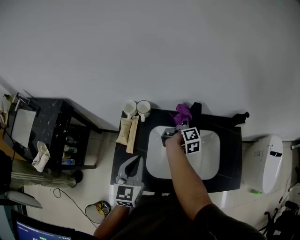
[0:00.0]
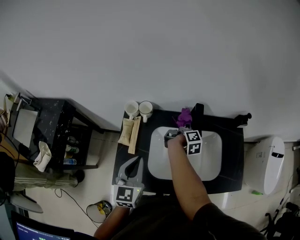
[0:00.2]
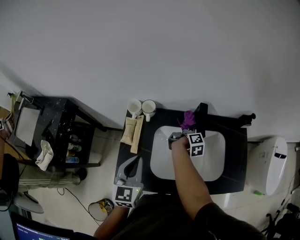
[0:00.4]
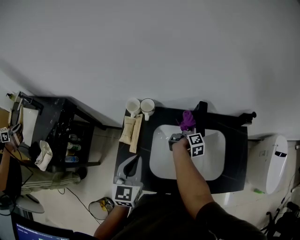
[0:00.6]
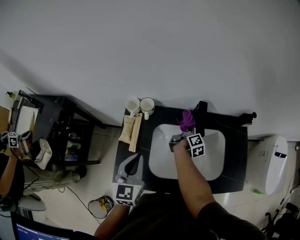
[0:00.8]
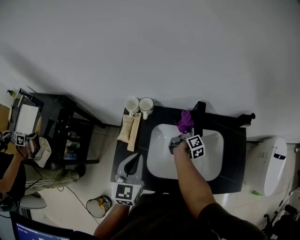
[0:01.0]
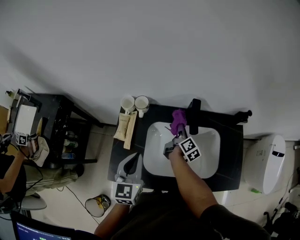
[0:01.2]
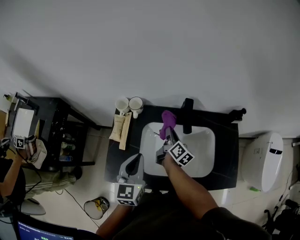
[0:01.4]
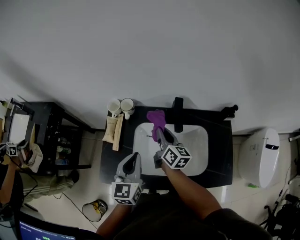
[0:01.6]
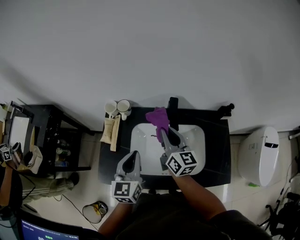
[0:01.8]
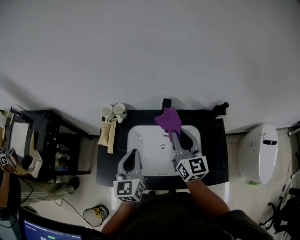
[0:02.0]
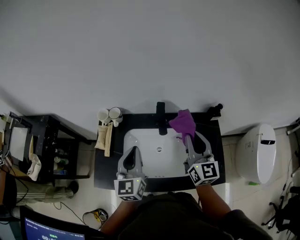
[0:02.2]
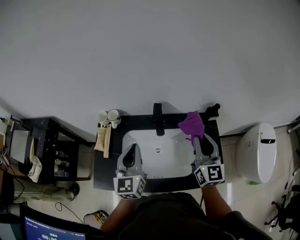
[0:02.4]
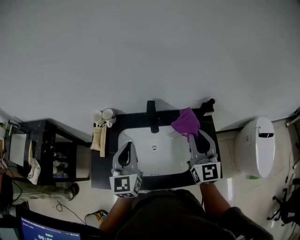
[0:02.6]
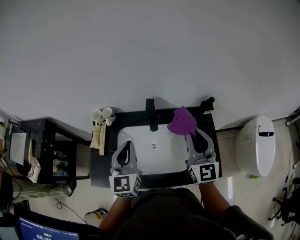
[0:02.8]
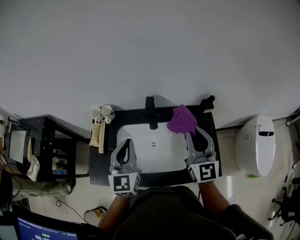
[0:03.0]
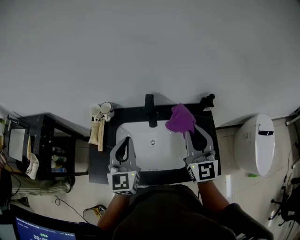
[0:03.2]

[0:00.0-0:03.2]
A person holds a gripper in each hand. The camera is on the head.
0:00.0 to 0:01.6: The left gripper is displaced to the right by approximately 5 cm, while the right gripper is displaced backward by roughly 10 cm, reaches approximately 10 cm downward, then returns, and turns by about 50 degrees.
0:01.6 to 0:03.2: The left gripper travels to the right and upward by about 10 cm; the right gripper moves to the right, upward and backward, approximately 30 cm, and rolls counterclockwise, seen from behind, by roughly 50 degrees.

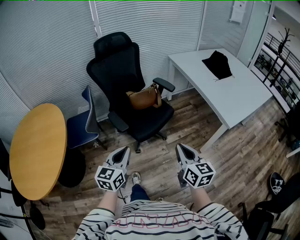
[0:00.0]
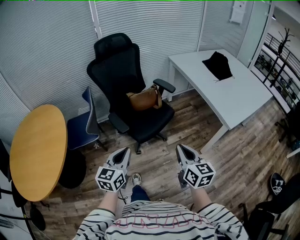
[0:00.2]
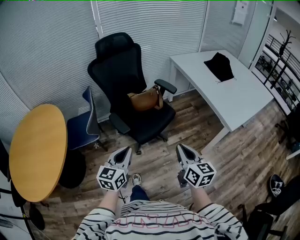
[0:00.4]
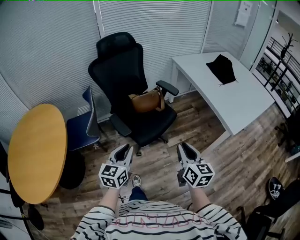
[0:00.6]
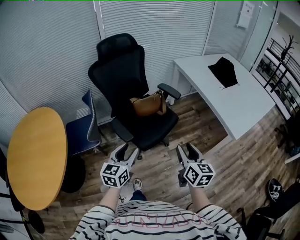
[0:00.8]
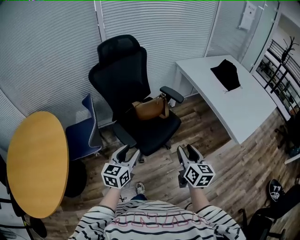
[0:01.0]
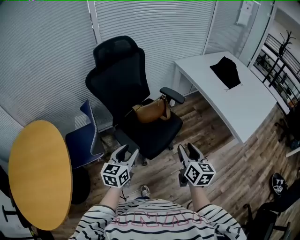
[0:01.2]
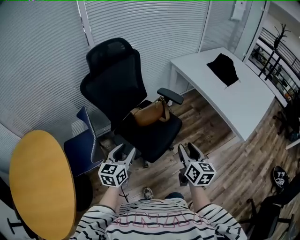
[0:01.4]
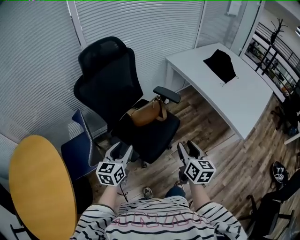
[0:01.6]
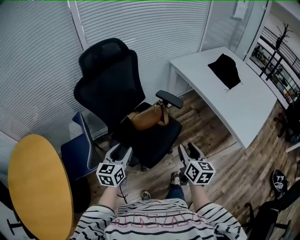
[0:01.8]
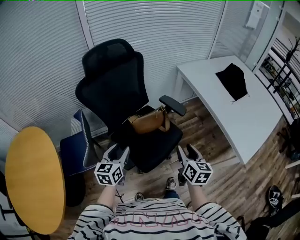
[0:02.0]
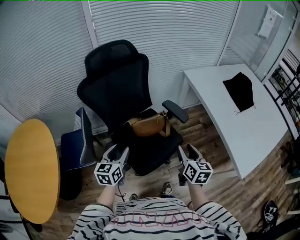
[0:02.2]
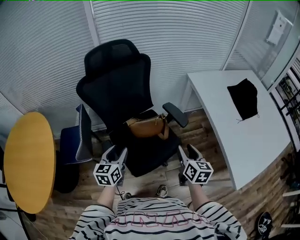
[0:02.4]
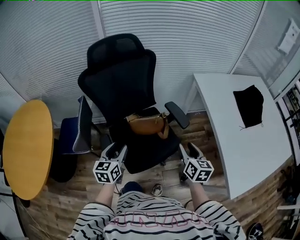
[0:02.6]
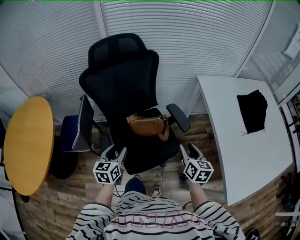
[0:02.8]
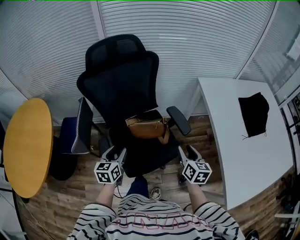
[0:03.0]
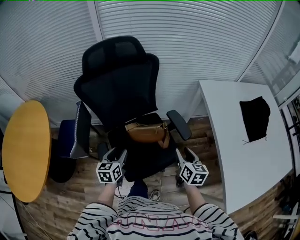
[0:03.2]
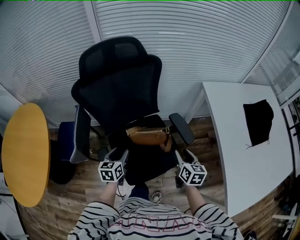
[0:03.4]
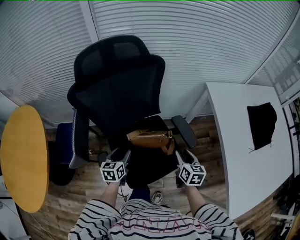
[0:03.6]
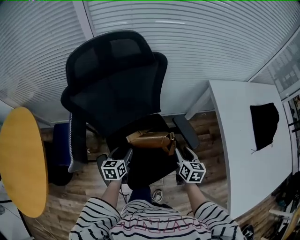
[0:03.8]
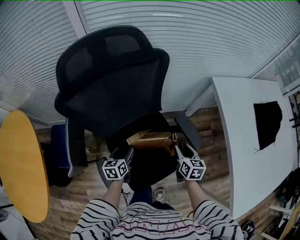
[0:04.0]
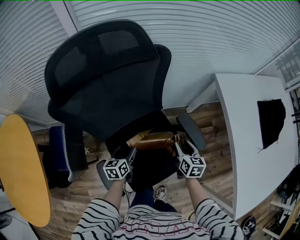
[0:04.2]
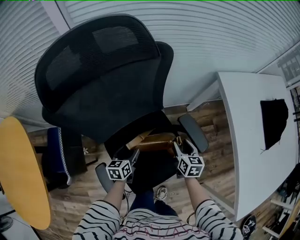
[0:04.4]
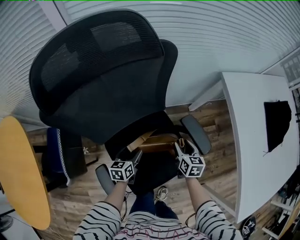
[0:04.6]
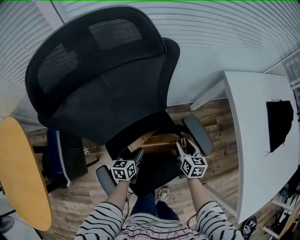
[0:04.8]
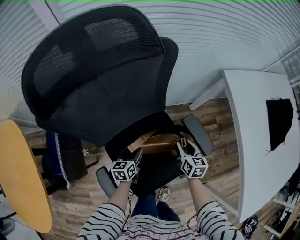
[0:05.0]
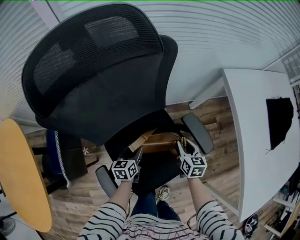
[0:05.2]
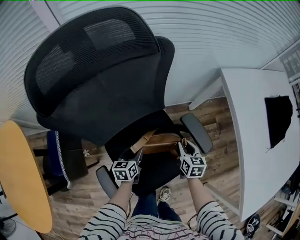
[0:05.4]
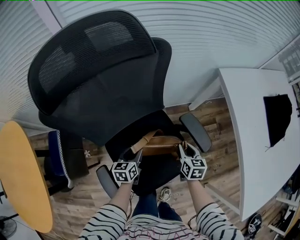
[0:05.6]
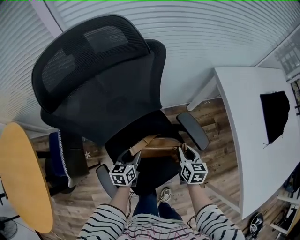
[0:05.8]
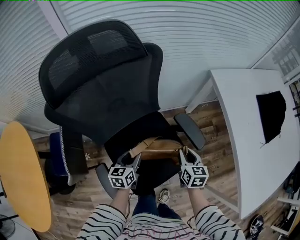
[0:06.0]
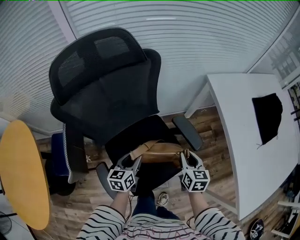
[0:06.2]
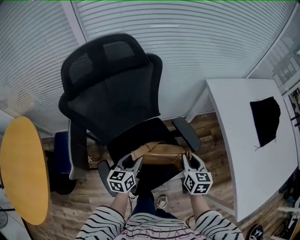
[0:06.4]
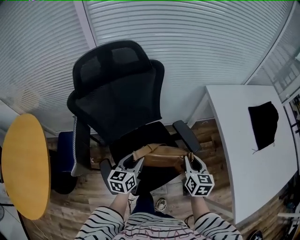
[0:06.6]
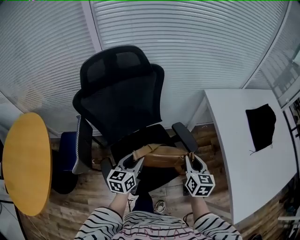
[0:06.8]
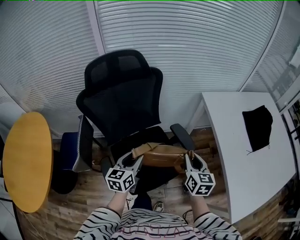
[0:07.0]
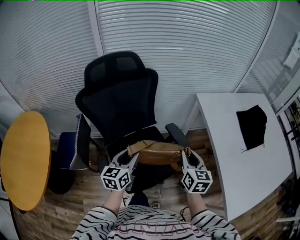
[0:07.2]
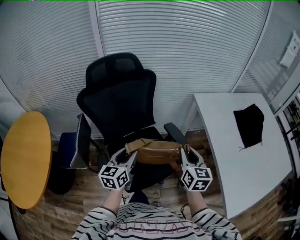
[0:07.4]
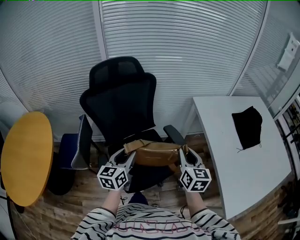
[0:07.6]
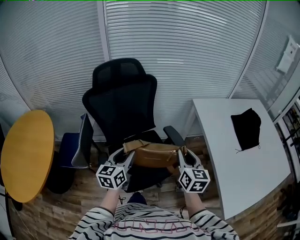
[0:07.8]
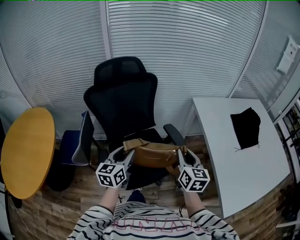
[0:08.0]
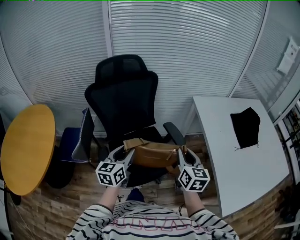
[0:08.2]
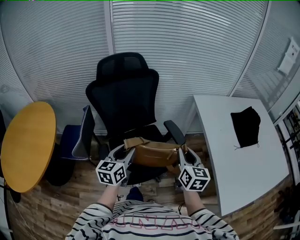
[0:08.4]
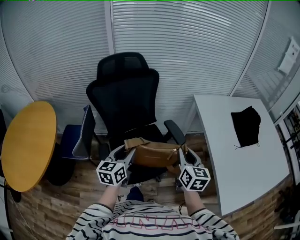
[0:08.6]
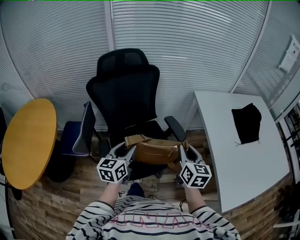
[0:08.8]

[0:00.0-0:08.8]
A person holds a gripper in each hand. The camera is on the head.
0:00.0 to 0:01.4: The two grippers go approximately 25 cm forward and to the left. The right gripper opens. Meanwhile the left gripper opens.
0:01.4 to 0:03.0: The right gripper shifts by approximately 30 cm, and turns by some 30 degrees, while the left gripper shifts by approximately 20 cm, and rotates roughly 30 degrees.
0:03.0 to 0:04.4: The right gripper travels forward, downward and to the left by approximately 30 cm. Meanwhile the left gripper goes about 30 cm forward and downward.
0:04.4 to 0:05.8: The right gripper closes its fingers. The left gripper closes.
0:05.8 to 0:07.4: Both grippers move upward and backward, roughly 30 cm. The right gripper turns by approximately 20 degrees, while the left gripper changes its angle by approximately 20 degrees.
0:07.4 to 0:08.8: The grippers both shift backward by some 5 cm.

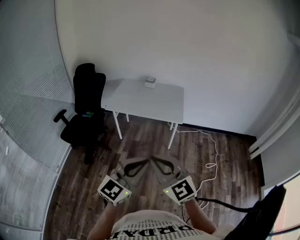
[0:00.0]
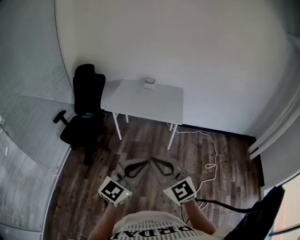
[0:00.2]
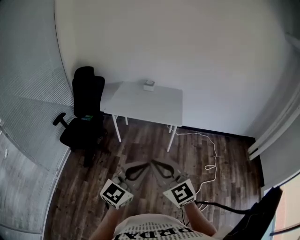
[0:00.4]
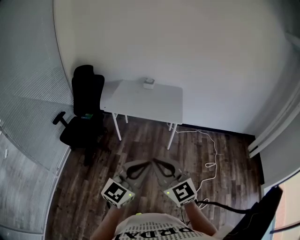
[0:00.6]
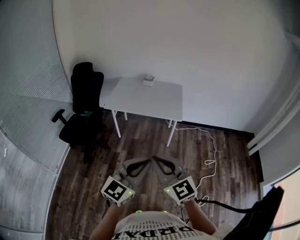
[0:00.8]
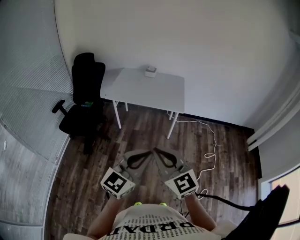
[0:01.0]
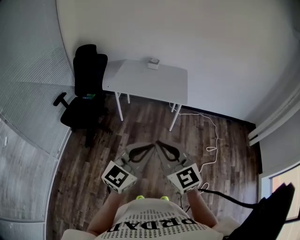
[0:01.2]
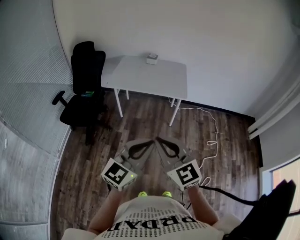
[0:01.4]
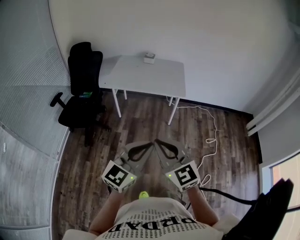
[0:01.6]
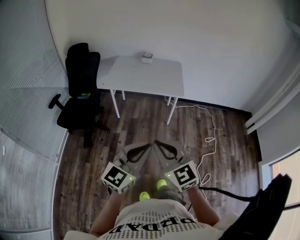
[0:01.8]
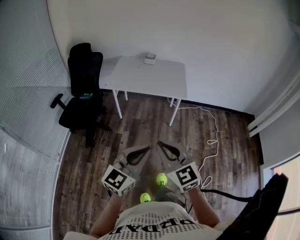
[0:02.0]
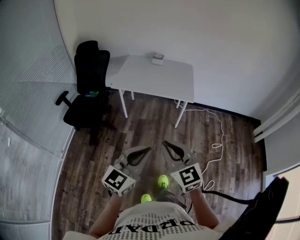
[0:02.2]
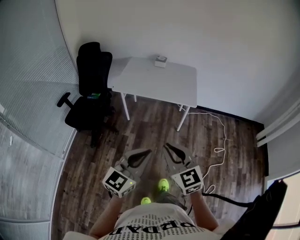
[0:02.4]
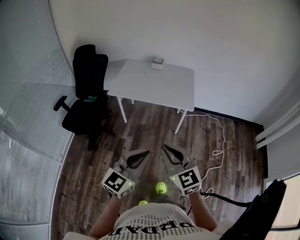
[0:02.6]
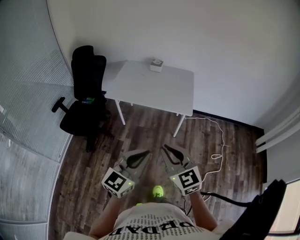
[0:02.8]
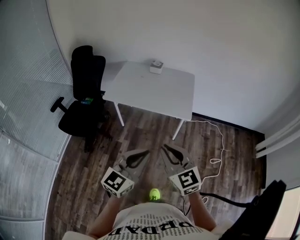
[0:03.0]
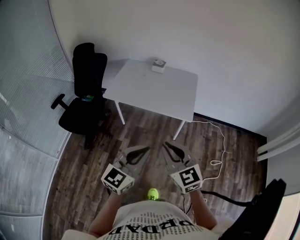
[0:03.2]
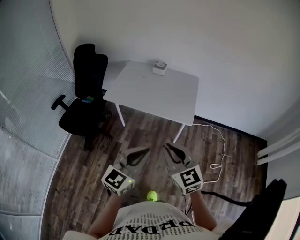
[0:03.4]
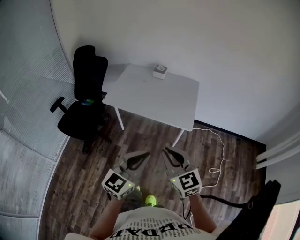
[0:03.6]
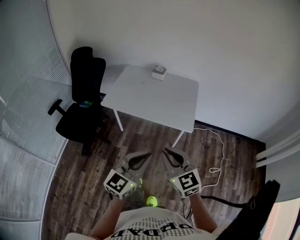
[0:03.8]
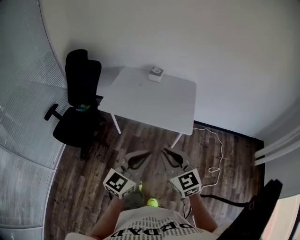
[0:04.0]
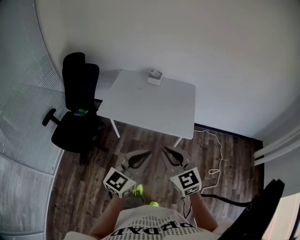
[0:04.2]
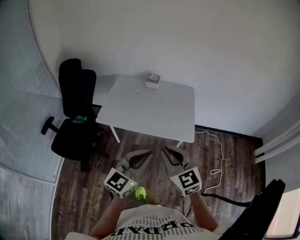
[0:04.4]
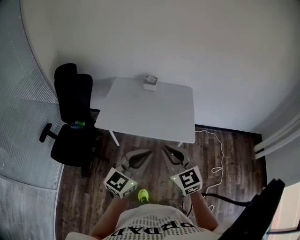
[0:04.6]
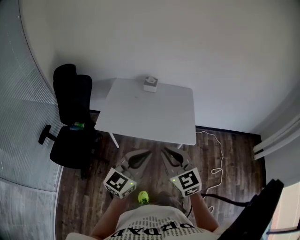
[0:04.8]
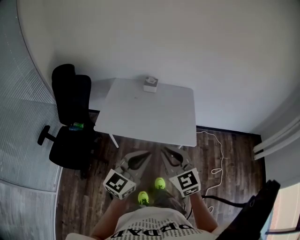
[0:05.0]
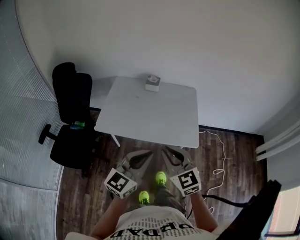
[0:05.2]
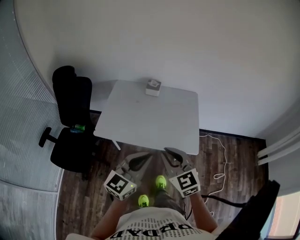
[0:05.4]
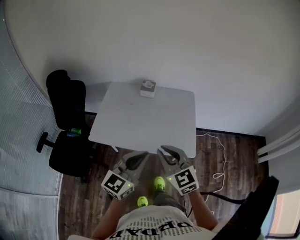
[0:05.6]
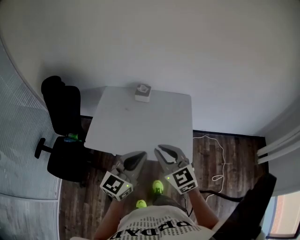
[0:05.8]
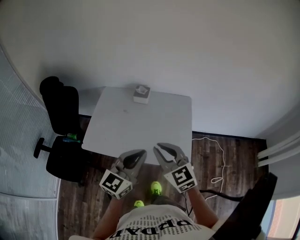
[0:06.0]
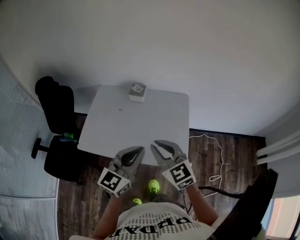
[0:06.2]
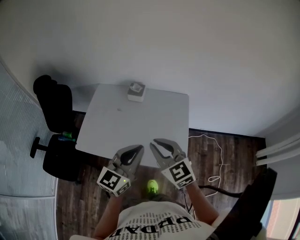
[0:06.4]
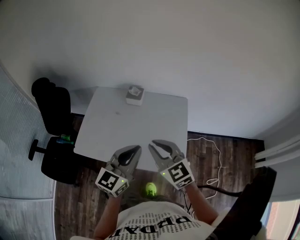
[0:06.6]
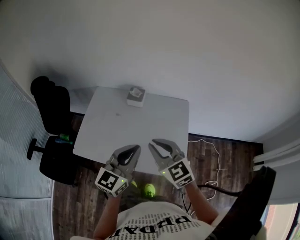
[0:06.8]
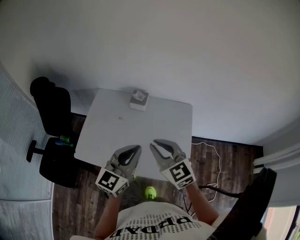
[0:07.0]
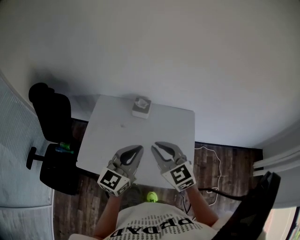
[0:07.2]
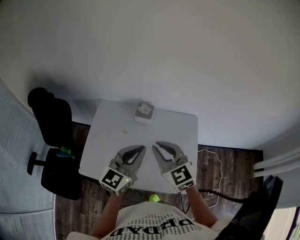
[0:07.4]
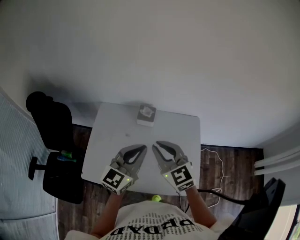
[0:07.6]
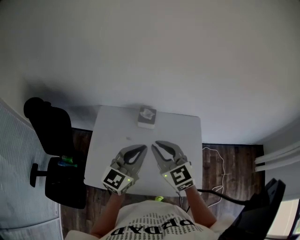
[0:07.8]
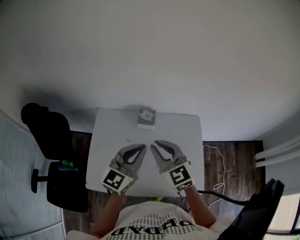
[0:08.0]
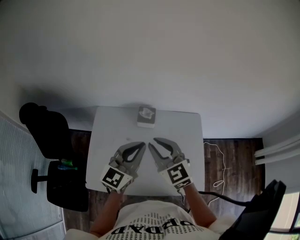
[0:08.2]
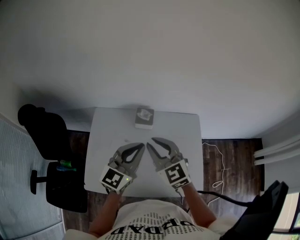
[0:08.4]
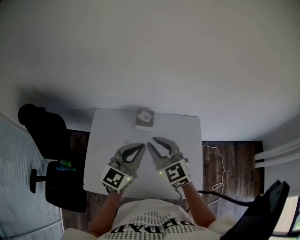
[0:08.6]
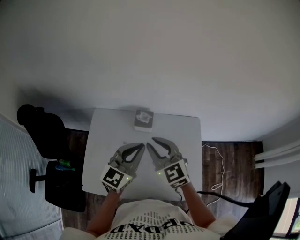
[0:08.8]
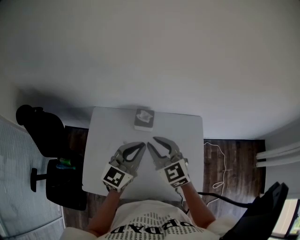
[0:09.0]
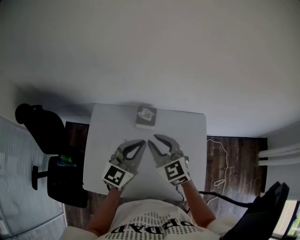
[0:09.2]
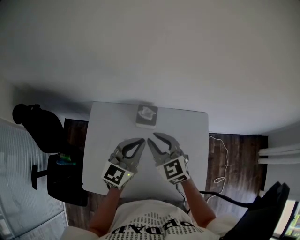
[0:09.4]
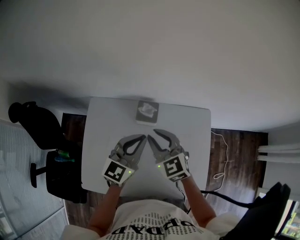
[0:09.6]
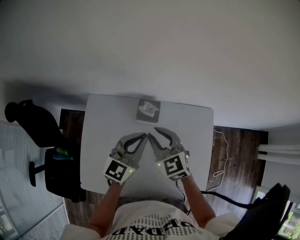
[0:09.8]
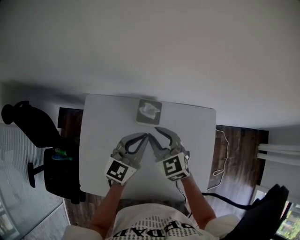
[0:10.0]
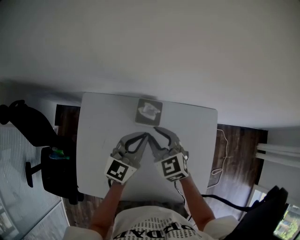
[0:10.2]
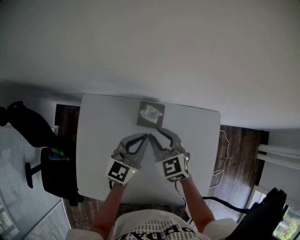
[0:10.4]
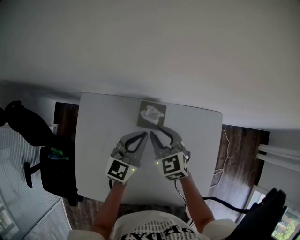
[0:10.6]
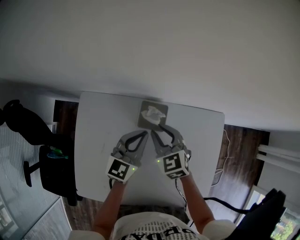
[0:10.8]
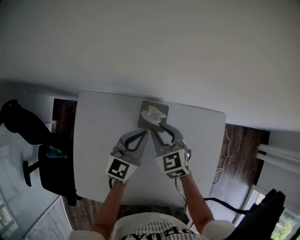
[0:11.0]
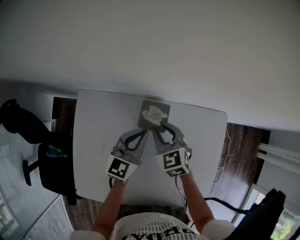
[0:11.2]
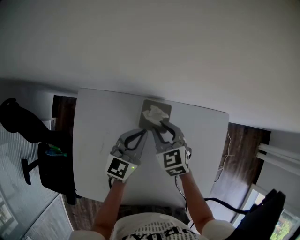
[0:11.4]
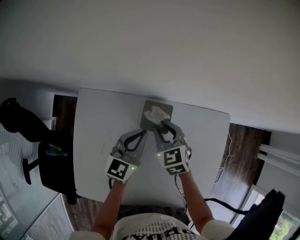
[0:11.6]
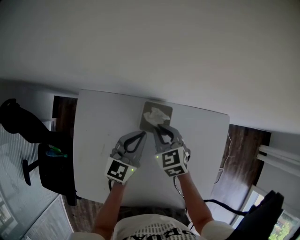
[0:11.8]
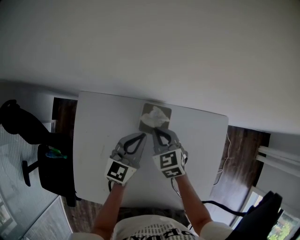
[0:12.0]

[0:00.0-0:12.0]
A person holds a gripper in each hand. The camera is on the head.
0:00.0 to 0:01.6: Both grippers travel together to the left, about 5 cm.
0:01.6 to 0:03.0: The left gripper goes some 20 cm forward. Meanwhile the right gripper travels forward and to the right by some 25 cm.
0:03.0 to 0:04.4: Both grippers travel together forward, some 20 cm.
0:04.4 to 0:06.0: The two grippers go about 25 cm forward.
0:06.0 to 0:07.6: Both grippers travel together forward, about 25 cm.
0:07.6 to 0:09.0: Both grippers move forward, approximately 10 cm.
0:09.0 to 0:10.4: The two grippers go approximately 20 cm downward and forward.
0:10.4 to 0:12.0: Both grippers move downward, some 5 cm. The right gripper closes up.
